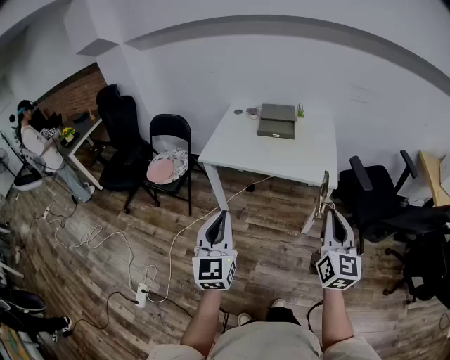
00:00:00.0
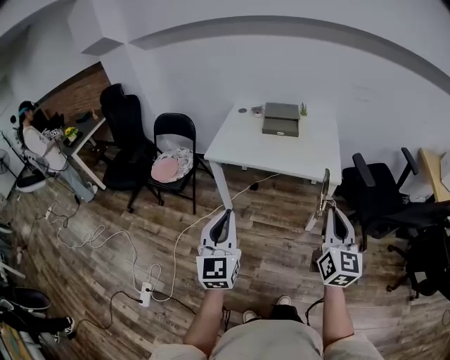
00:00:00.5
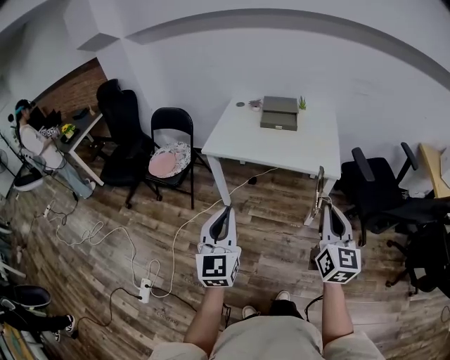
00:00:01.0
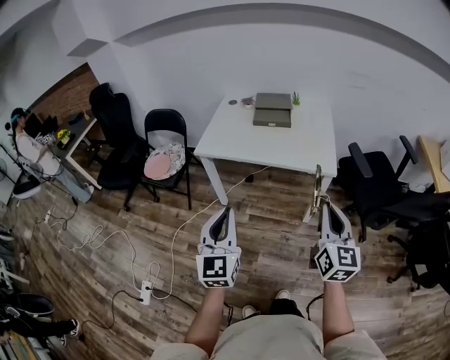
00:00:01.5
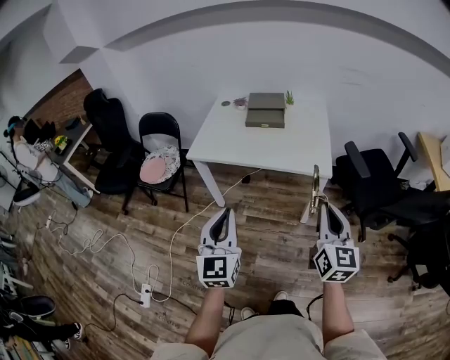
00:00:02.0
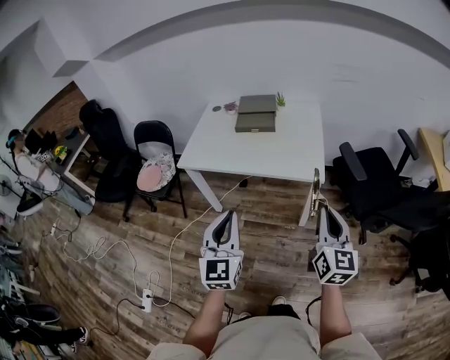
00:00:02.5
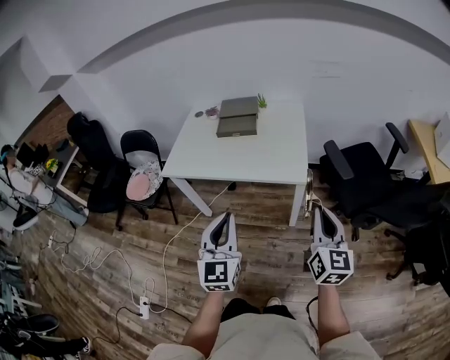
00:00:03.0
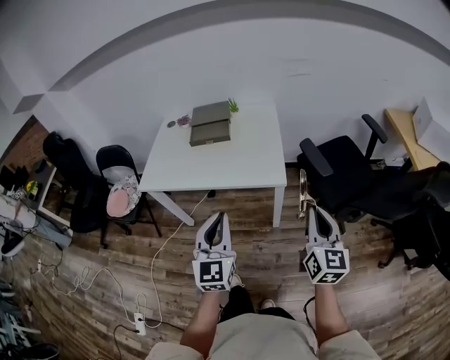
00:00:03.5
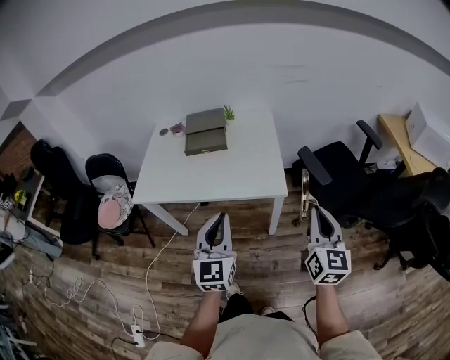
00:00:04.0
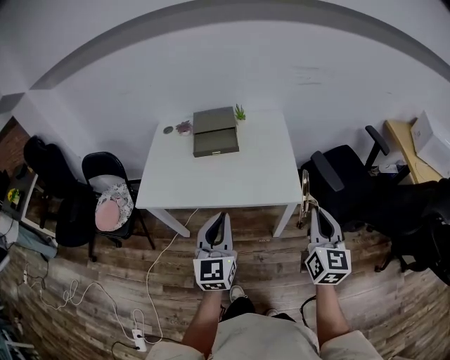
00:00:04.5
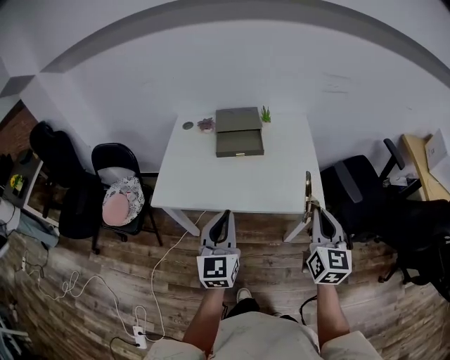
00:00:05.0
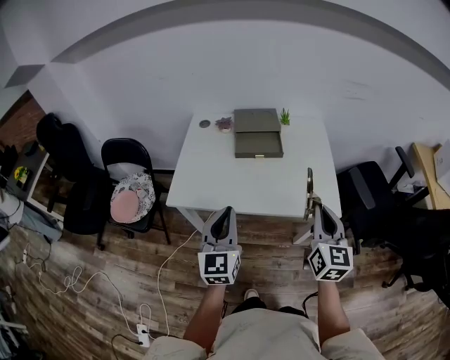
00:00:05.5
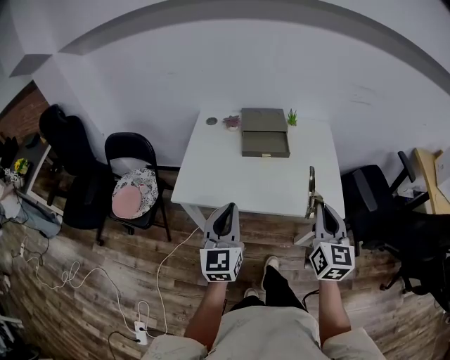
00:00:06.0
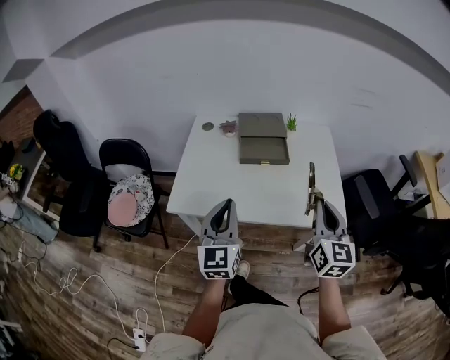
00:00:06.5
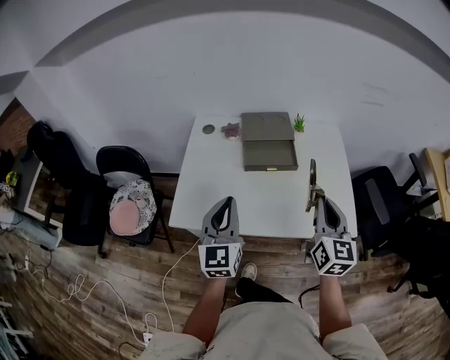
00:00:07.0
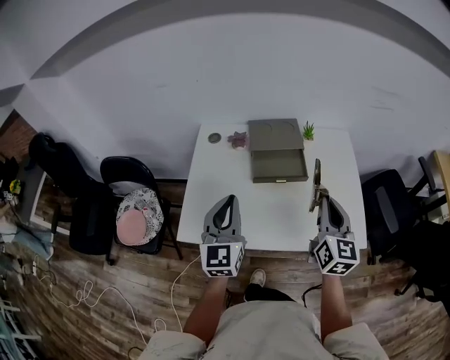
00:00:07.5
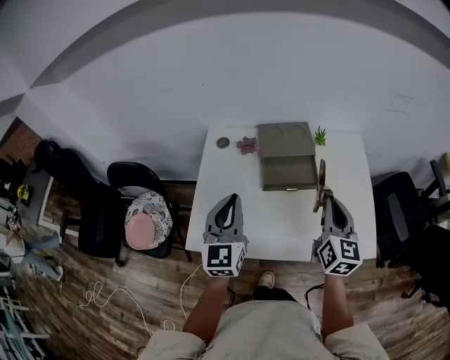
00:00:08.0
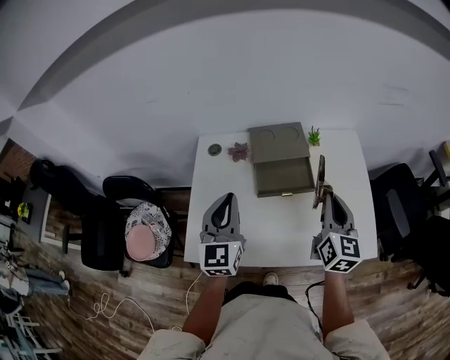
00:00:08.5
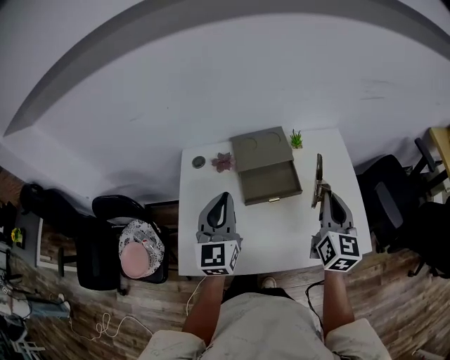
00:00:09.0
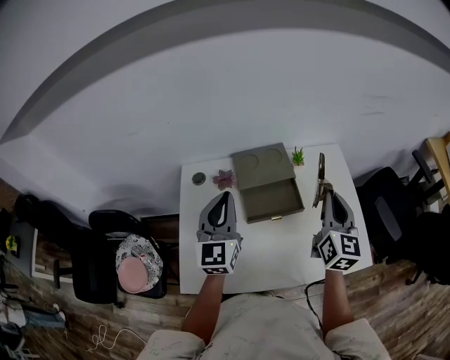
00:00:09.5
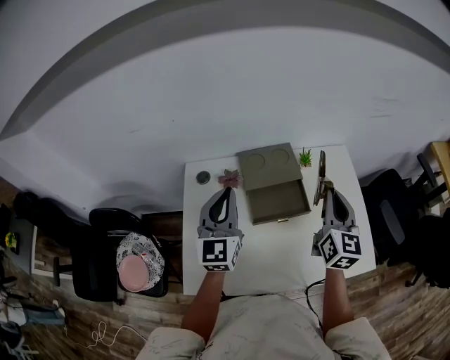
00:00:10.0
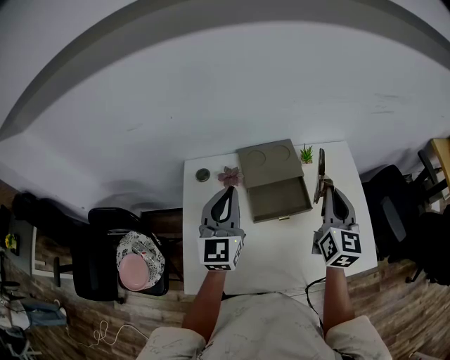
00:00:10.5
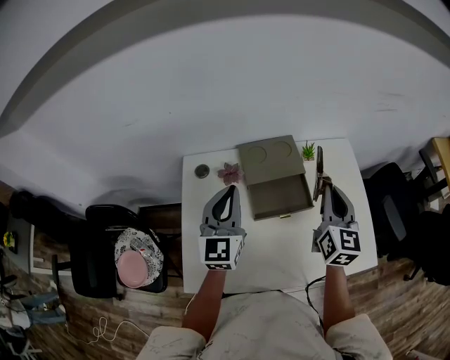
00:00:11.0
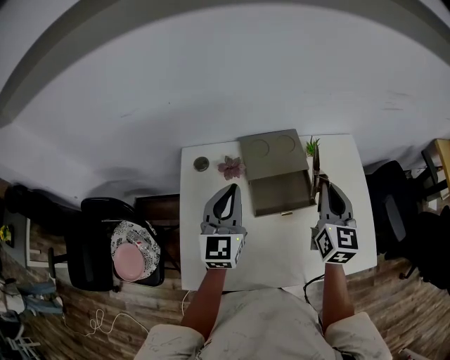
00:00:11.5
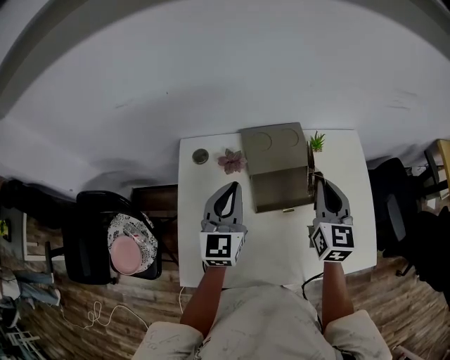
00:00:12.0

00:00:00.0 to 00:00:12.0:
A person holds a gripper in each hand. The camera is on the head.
00:00:00.0 to 00:00:02.0: The left gripper moves to the right, some 5 cm; the right gripper changes place by approximately 5 cm.
00:00:02.0 to 00:00:04.0: The right gripper goes approximately 20 cm to the right and forward, while the left gripper shifts about 25 cm forward and to the right.
00:00:04.0 to 00:00:06.0: The right gripper heads to the left and forward, covering roughly 30 cm; the left gripper shifts roughly 25 cm to the left.
00:00:06.0 to 00:00:08.0: The grippers both shift forward by some 25 cm.
00:00:08.0 to 00:00:10.0: Both grippers travel together forward, roughly 15 cm.
00:00:10.0 to 00:00:12.0: The left gripper heads downward, covering approximately 10 cm. Meanwhile the right gripper heads to the left and downward, covering approximately 10 cm.

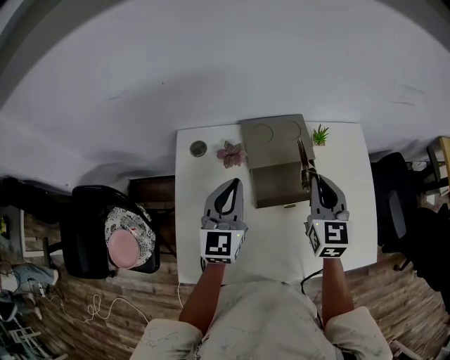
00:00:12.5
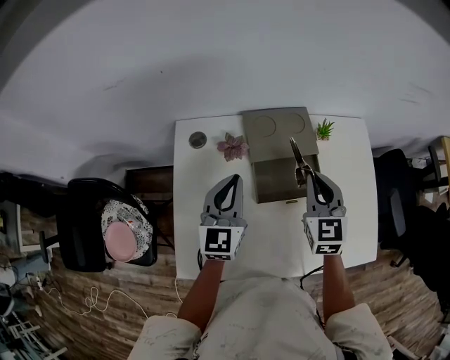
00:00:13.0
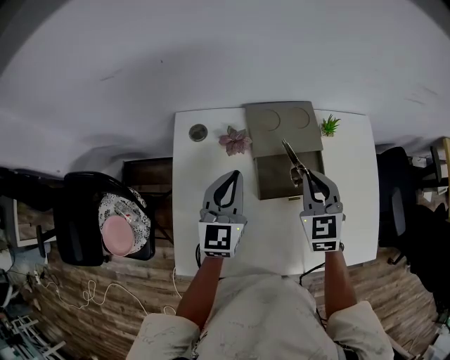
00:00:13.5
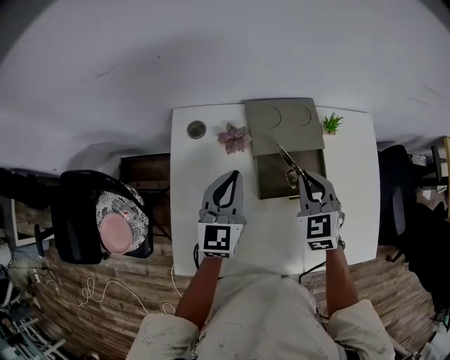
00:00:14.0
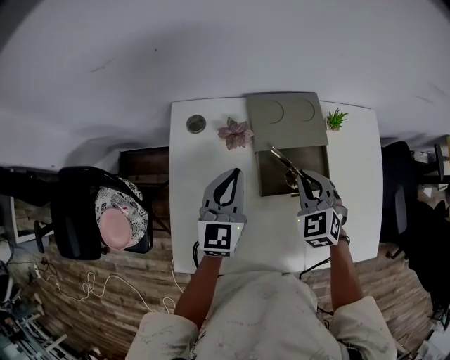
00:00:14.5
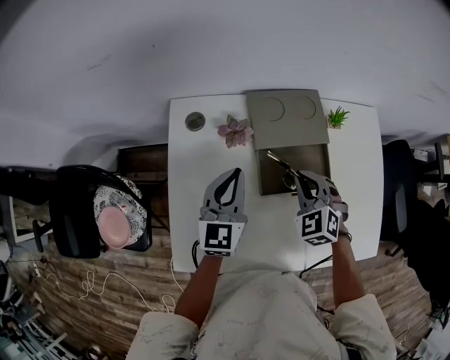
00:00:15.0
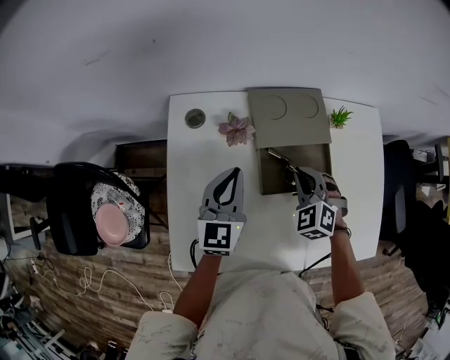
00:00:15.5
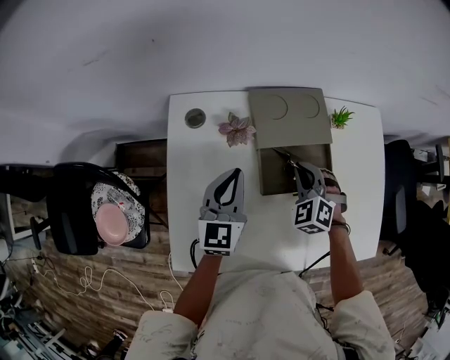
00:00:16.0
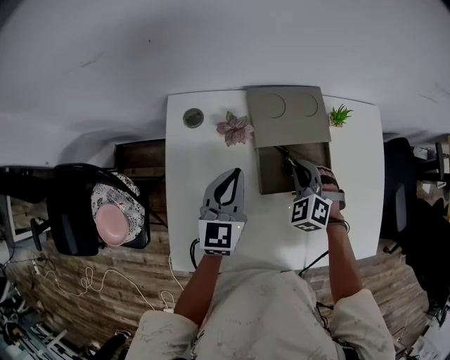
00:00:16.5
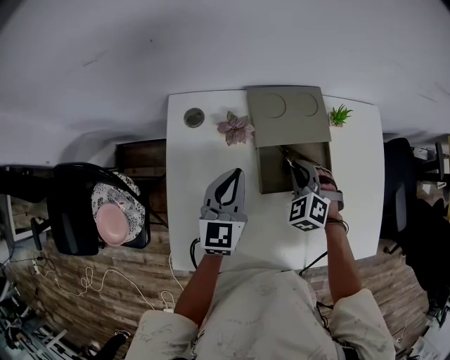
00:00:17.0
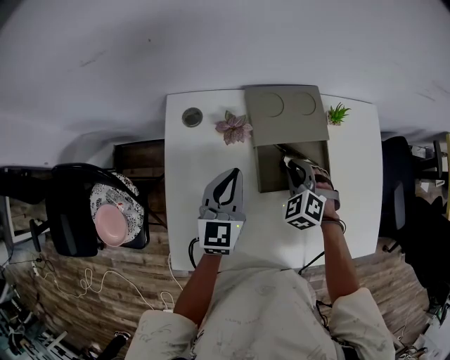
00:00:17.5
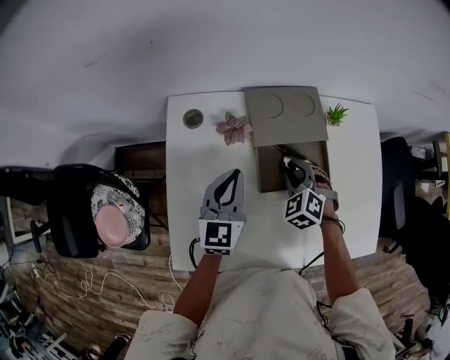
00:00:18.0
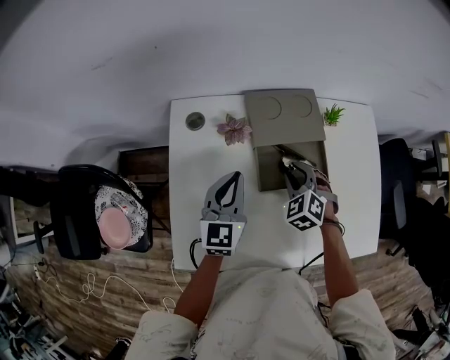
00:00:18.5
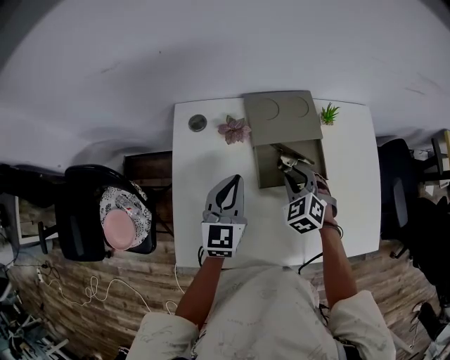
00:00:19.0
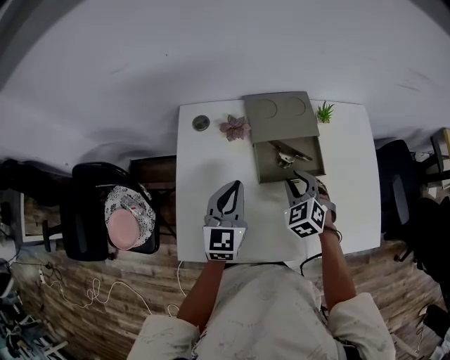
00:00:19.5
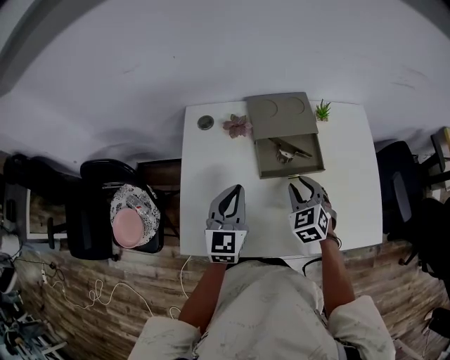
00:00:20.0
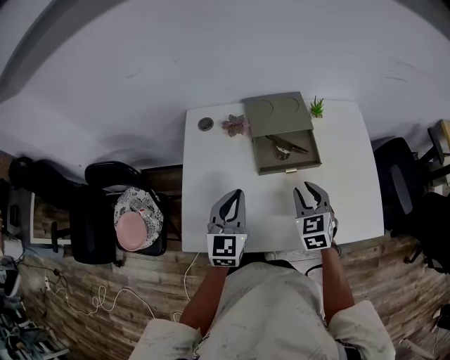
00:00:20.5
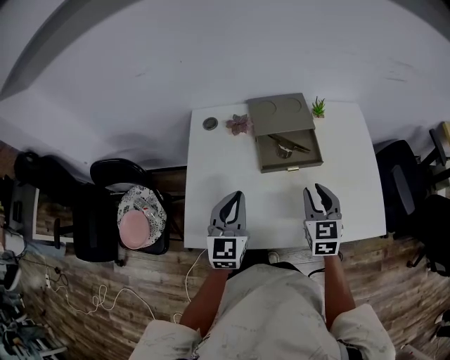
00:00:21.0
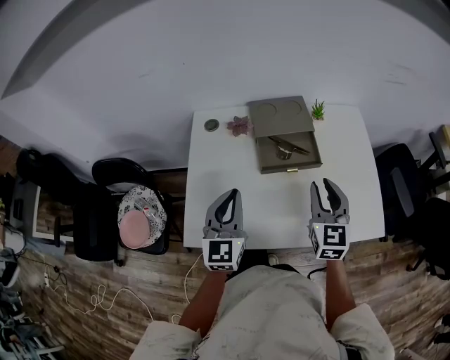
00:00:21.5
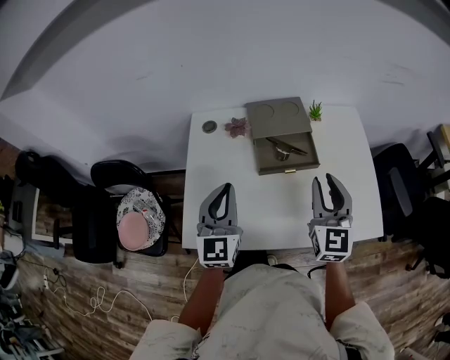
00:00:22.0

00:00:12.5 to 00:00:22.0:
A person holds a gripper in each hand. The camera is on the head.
00:00:12.5 to 00:00:14.5: The right gripper shifts some 10 cm downward and to the left, and rotates roughly 40 degrees, while the left gripper travels downward by roughly 5 cm.
00:00:14.5 to 00:00:16.5: The right gripper goes some 5 cm downward.
00:00:16.5 to 00:00:18.0: The right gripper opens its fingers.
00:00:18.0 to 00:00:20.0: The left gripper is displaced backward by some 10 cm. Meanwhile the right gripper shifts about 10 cm backward and upward, and rotates some 20 degrees.
00:00:20.0 to 00:00:22.0: The right gripper travels upward, backward and to the right by some 20 cm, and angles its fingers upward, by approximately 40 degrees, while the left gripper heads upward and backward, covering about 10 cm.

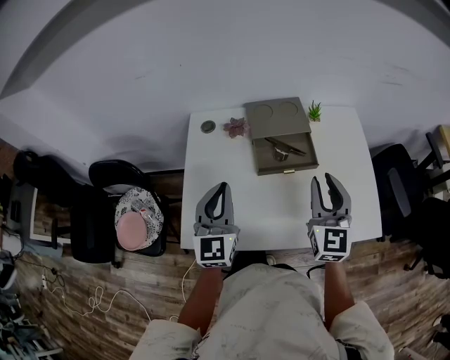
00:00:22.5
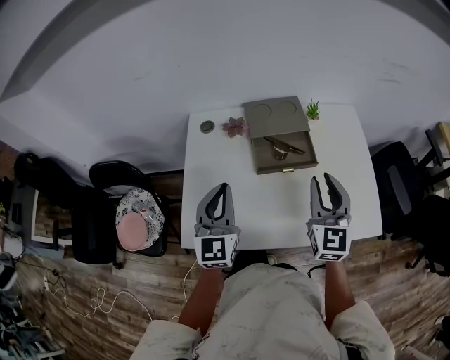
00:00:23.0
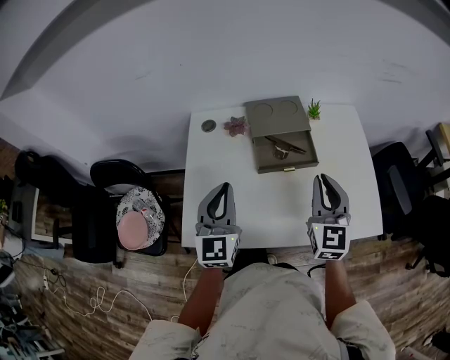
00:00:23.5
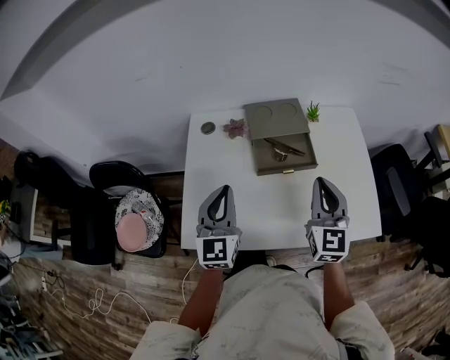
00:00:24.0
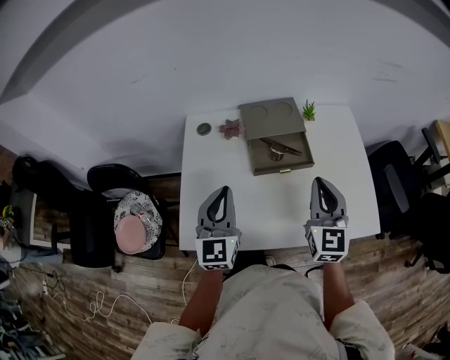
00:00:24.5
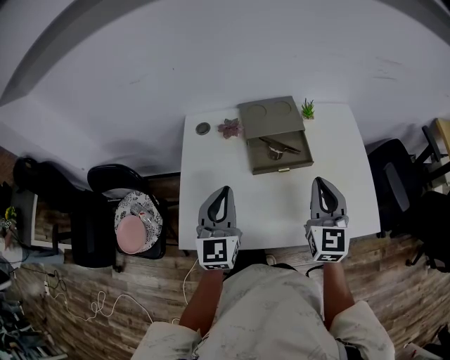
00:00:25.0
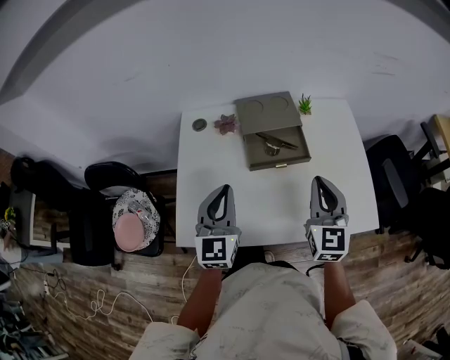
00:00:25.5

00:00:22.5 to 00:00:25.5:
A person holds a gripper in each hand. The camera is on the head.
00:00:22.5 to 00:00:24.0: The right gripper closes up.
00:00:24.0 to 00:00:25.5: There are only small adjustments of the grippers.

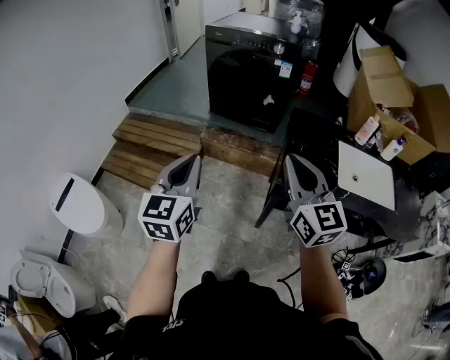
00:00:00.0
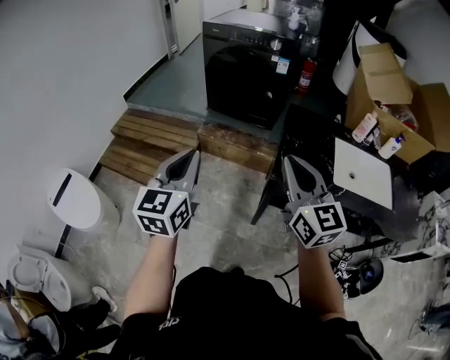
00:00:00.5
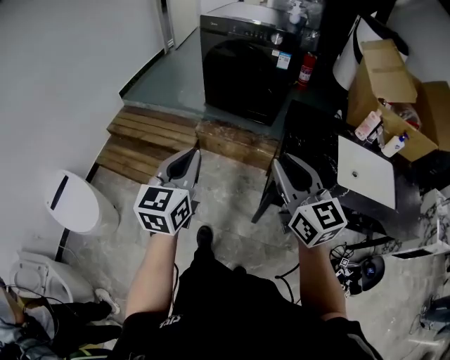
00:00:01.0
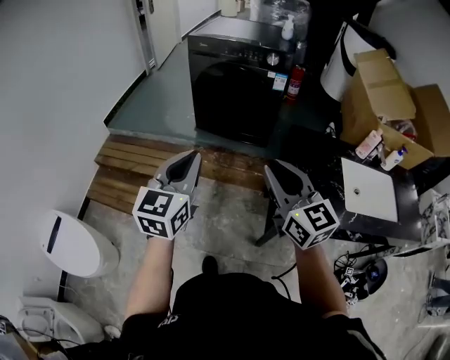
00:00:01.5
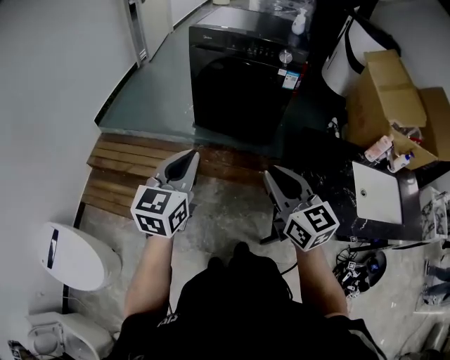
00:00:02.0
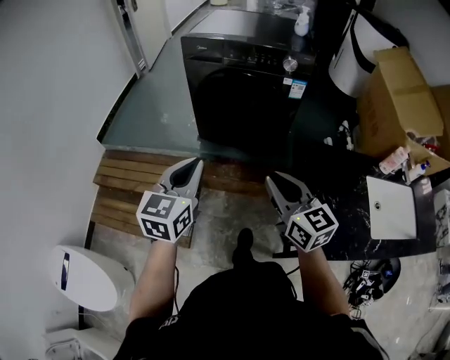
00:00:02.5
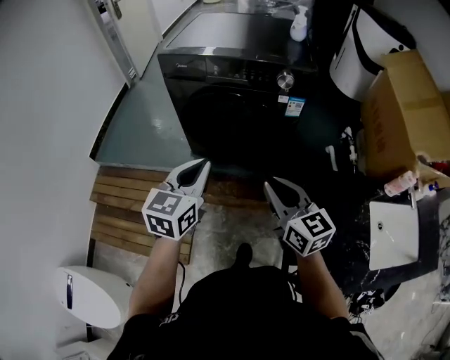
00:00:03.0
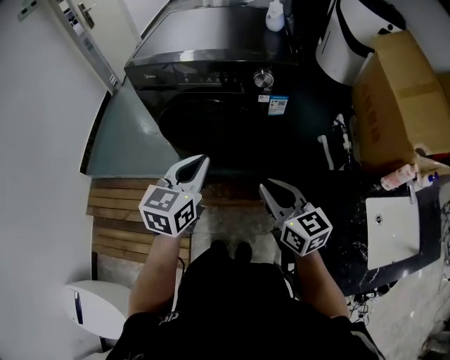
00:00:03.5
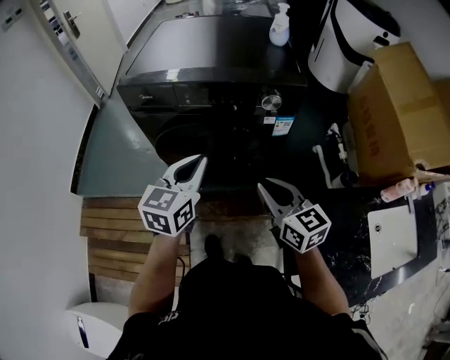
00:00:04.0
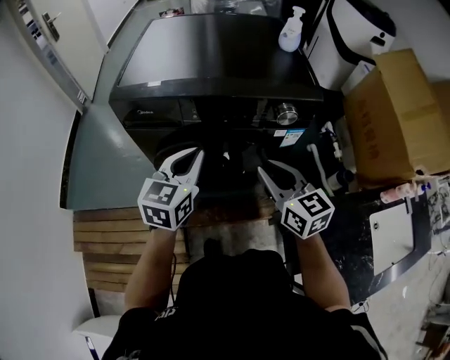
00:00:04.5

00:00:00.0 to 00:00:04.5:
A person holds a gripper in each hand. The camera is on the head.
00:00:00.0 to 00:00:02.0: The right gripper moves forward and to the left, approximately 25 cm; the left gripper is displaced forward by some 30 cm.
00:00:02.0 to 00:00:04.5: The pair of grippers is taken forward, roughly 50 cm. The left gripper turns by some 20 degrees.
